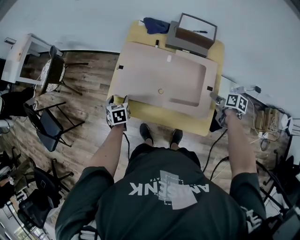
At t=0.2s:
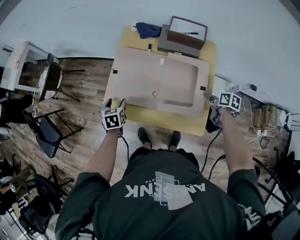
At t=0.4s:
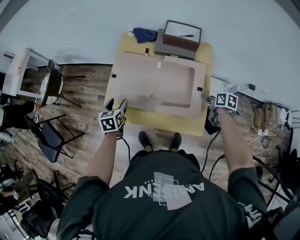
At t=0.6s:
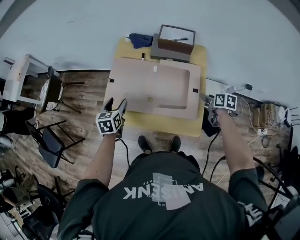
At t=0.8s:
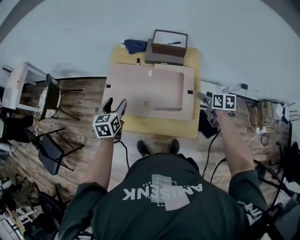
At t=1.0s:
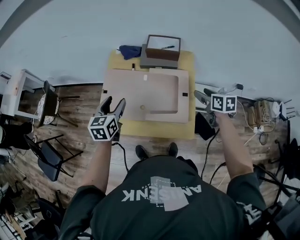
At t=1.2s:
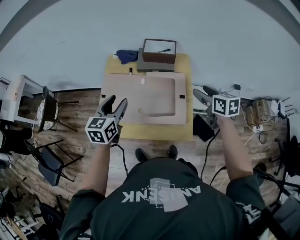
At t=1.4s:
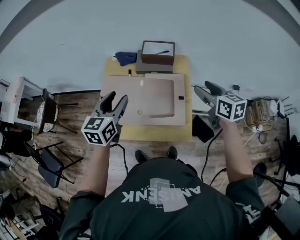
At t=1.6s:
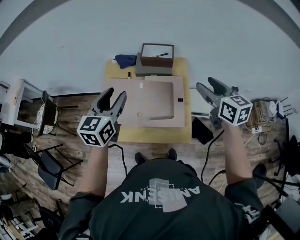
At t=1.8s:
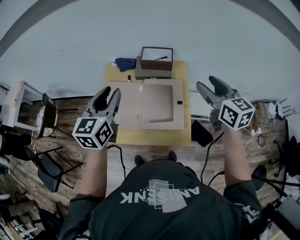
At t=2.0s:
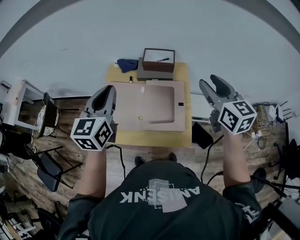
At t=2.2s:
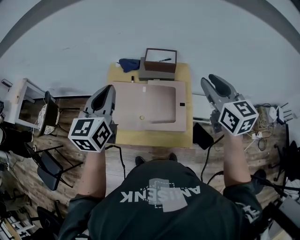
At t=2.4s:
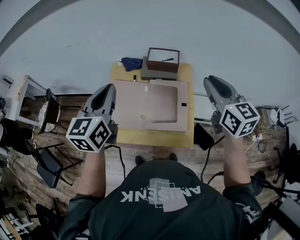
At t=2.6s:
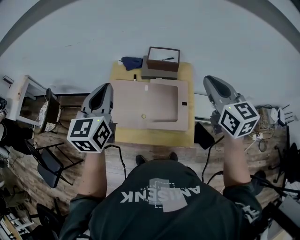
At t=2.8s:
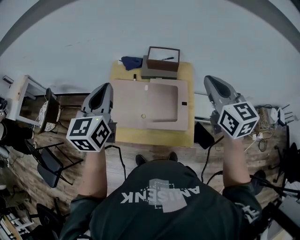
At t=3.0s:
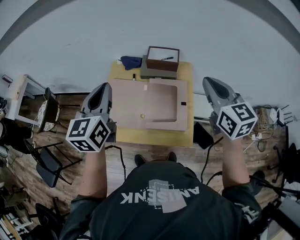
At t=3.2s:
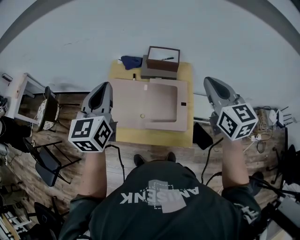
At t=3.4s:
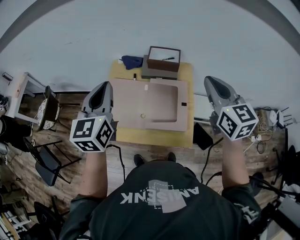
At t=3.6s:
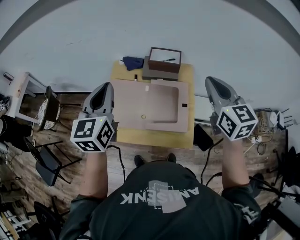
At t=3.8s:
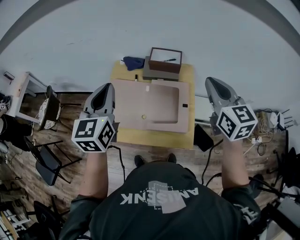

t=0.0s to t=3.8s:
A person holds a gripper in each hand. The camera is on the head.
t=0.0s to t=1.2s: The left gripper moves upward and to the right, about 30 cm, and tips its fingers upward by approximately 30 degrees; the right gripper travels upward by some 20 cm, and changes its angle by roughly 40 degrees.
t=1.2s to t=2.6s: Both grippers move upward, approximately 20 cm. The right gripper swivels approximately 30 degrees, and closes; the left gripper closes.
t=2.6s to t=3.8s: The grippers move only a little.

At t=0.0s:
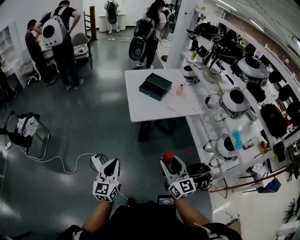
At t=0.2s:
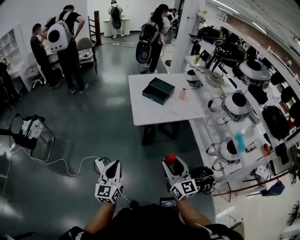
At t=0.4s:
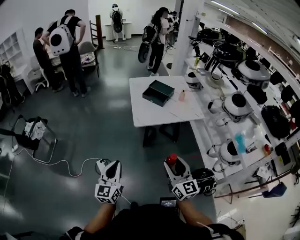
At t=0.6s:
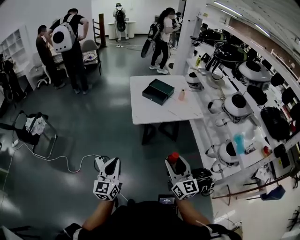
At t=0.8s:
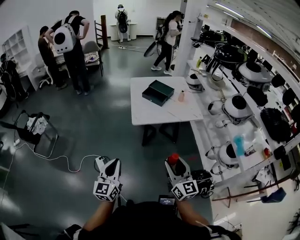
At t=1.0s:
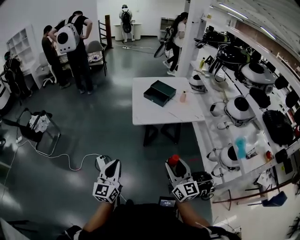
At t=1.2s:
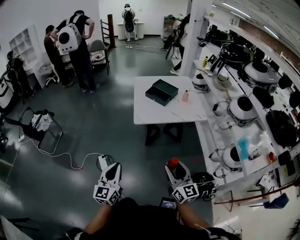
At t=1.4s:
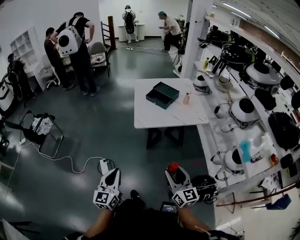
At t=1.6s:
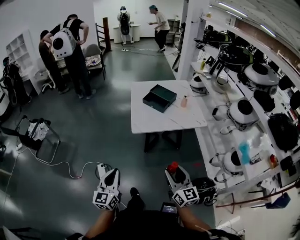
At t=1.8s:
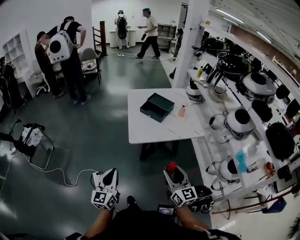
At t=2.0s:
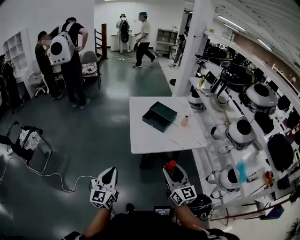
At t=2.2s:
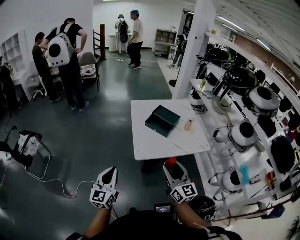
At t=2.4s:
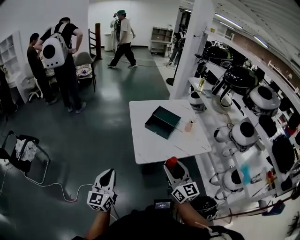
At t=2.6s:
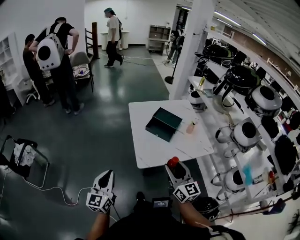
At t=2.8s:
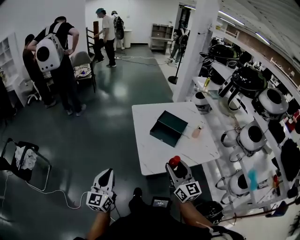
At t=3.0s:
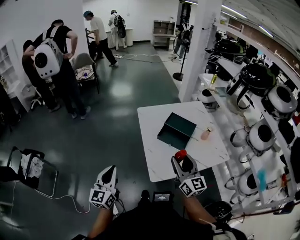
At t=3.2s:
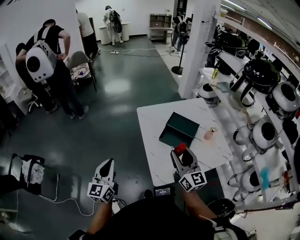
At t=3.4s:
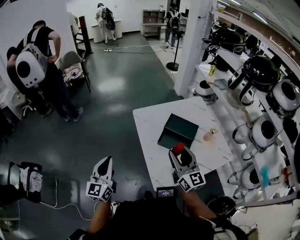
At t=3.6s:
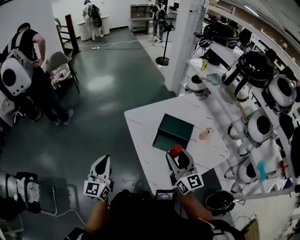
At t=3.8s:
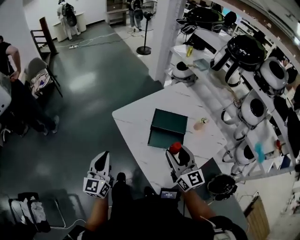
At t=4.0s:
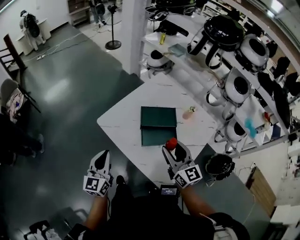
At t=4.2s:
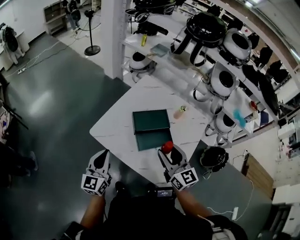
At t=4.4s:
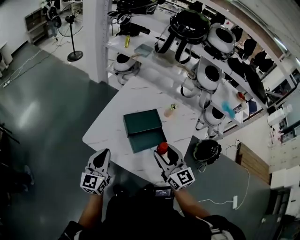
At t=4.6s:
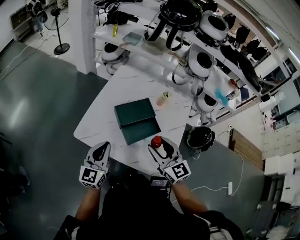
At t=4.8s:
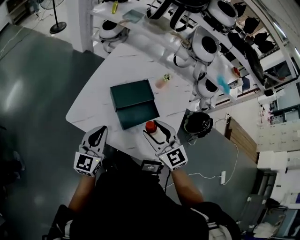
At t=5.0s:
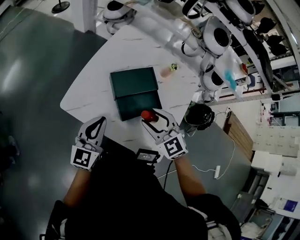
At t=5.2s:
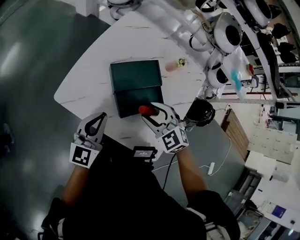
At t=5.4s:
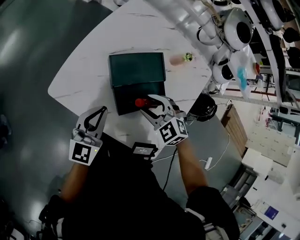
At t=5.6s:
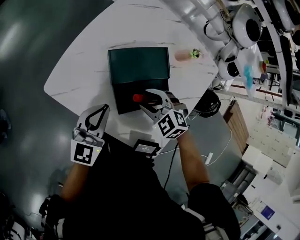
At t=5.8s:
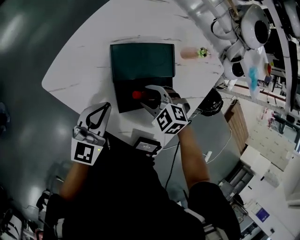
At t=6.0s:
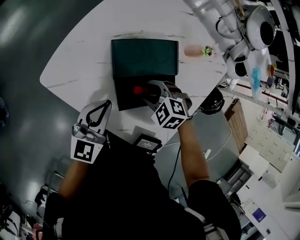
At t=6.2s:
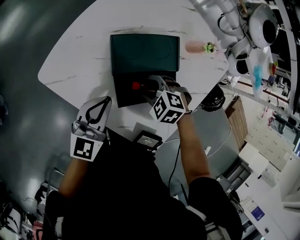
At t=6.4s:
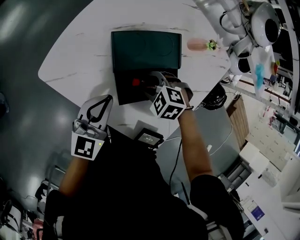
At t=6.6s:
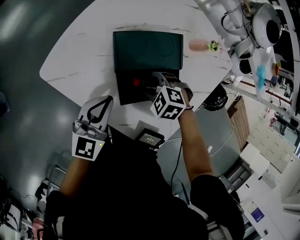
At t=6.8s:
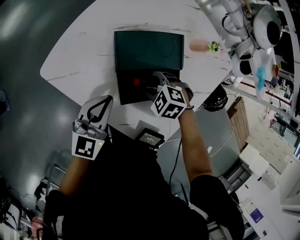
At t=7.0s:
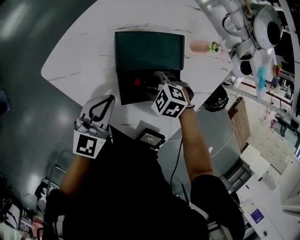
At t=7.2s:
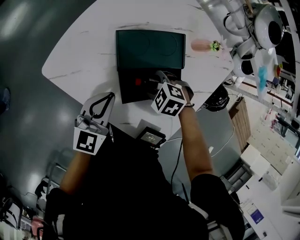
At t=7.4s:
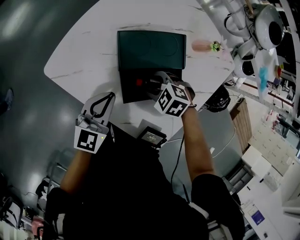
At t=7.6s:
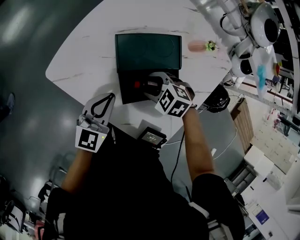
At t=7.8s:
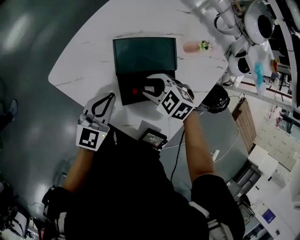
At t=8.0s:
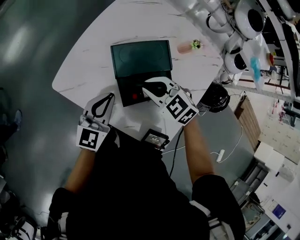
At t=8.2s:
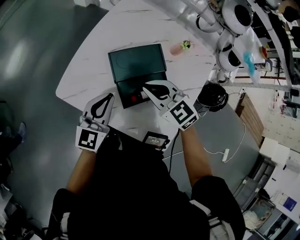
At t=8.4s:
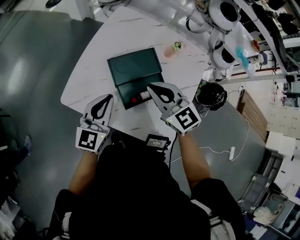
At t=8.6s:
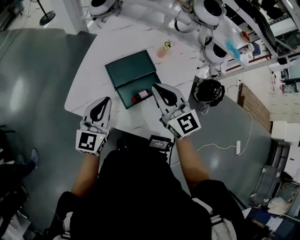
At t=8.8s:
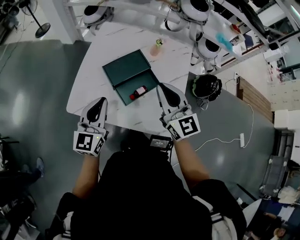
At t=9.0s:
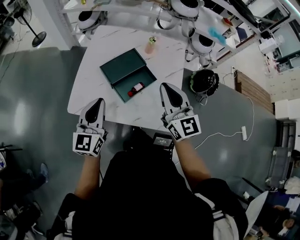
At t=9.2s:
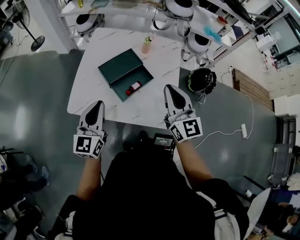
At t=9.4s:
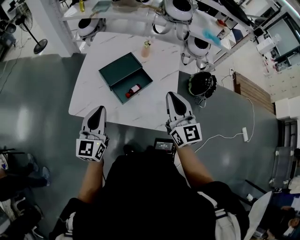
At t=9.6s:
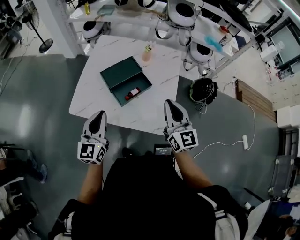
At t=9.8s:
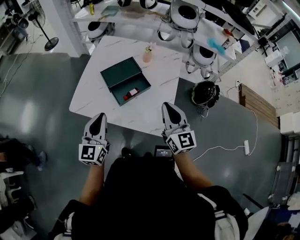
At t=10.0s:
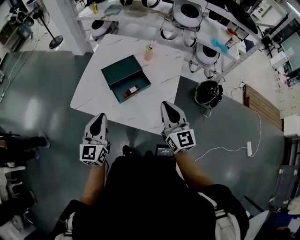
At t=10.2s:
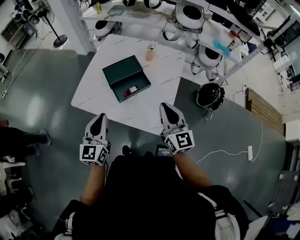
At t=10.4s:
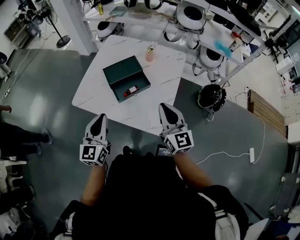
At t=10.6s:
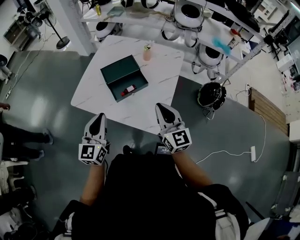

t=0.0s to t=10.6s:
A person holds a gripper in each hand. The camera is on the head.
t=0.0s to t=1.6s: The grippers both shift to the right by about 10 cm.
t=1.6s to t=3.0s: The pair of grippers is taken forward, roughly 40 cm.
t=3.0s to t=4.6s: The right gripper ends up approximately 20 cm from where it was, and swivels about 50 degrees, while the left gripper shifts by some 40 cm, and turns by roughly 60 degrees.
t=4.6s to t=6.0s: The right gripper travels downward by roughly 25 cm, and points its fingers approximately 60 degrees further downward. Meanwhile the left gripper shifts approximately 15 cm downward and to the right.
t=6.0s to t=7.6s: There are only small adjustments of the grippers.
t=7.6s to t=9.0s: The left gripper travels upward by approximately 20 cm. The right gripper heads upward, covering roughly 30 cm, angles its fingers upward, by approximately 60 degrees, and closes up.
t=9.0s to t=10.6s: The left gripper heads backward and to the right, covering about 15 cm. Meanwhile the right gripper travels to the right and backward by approximately 15 cm.

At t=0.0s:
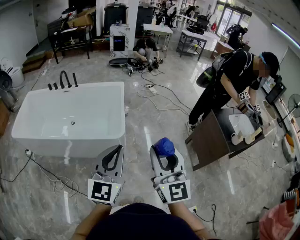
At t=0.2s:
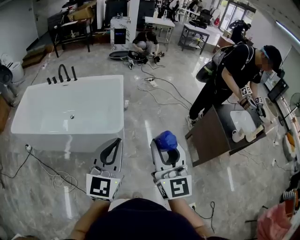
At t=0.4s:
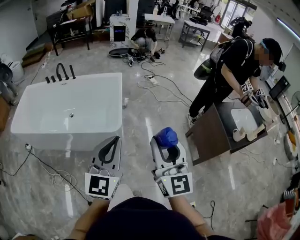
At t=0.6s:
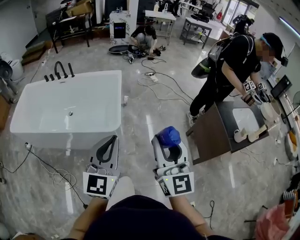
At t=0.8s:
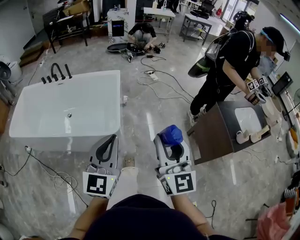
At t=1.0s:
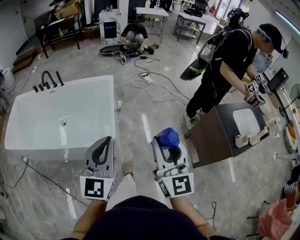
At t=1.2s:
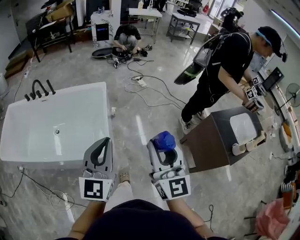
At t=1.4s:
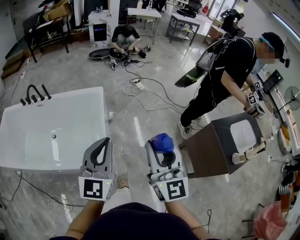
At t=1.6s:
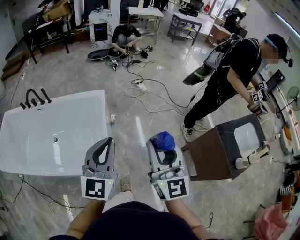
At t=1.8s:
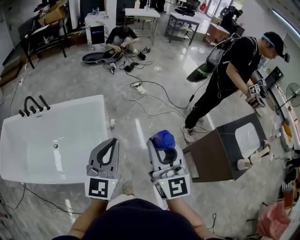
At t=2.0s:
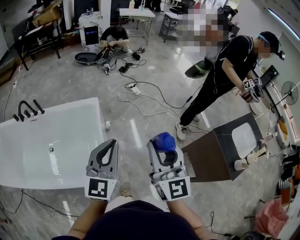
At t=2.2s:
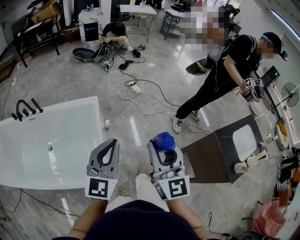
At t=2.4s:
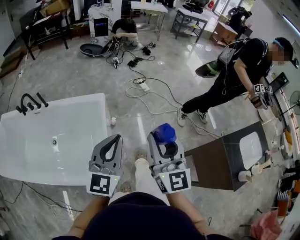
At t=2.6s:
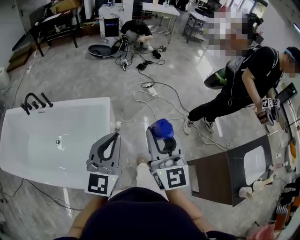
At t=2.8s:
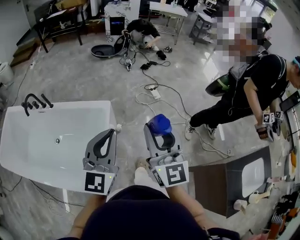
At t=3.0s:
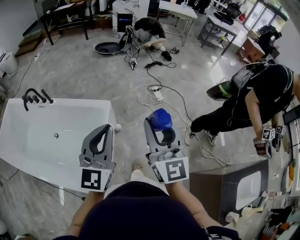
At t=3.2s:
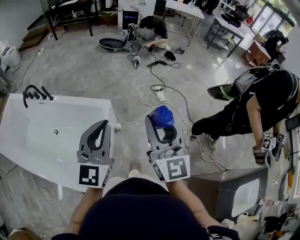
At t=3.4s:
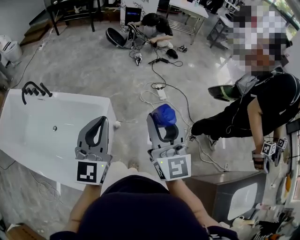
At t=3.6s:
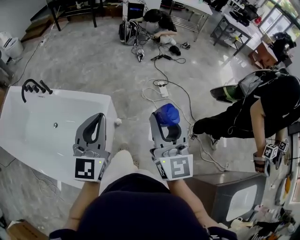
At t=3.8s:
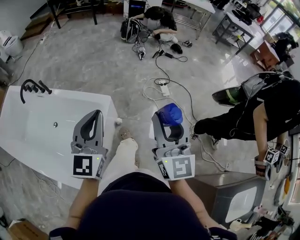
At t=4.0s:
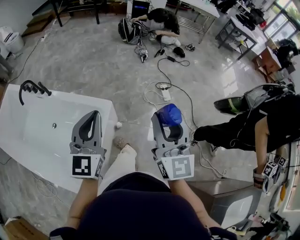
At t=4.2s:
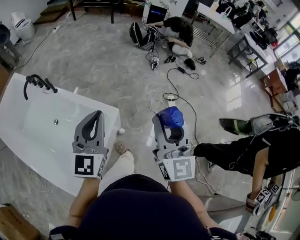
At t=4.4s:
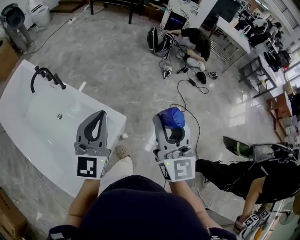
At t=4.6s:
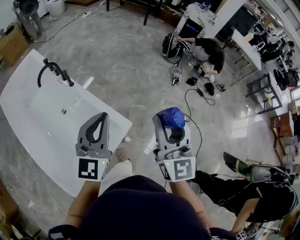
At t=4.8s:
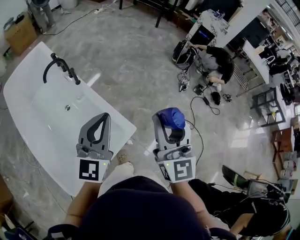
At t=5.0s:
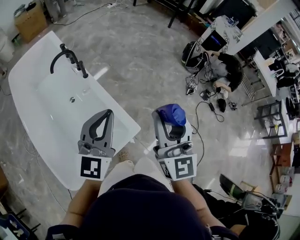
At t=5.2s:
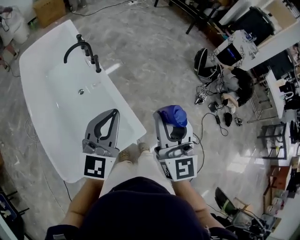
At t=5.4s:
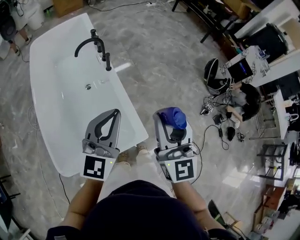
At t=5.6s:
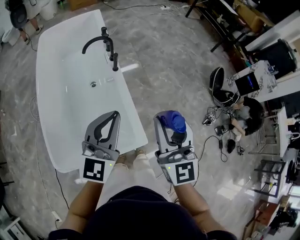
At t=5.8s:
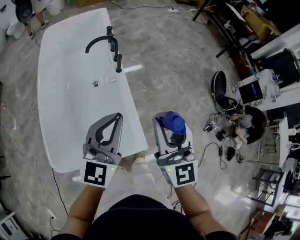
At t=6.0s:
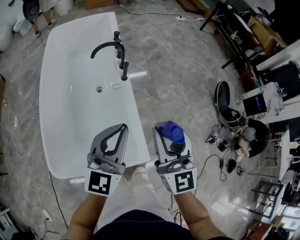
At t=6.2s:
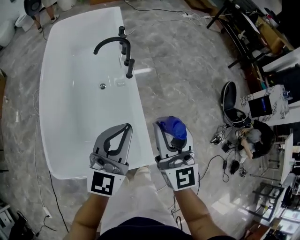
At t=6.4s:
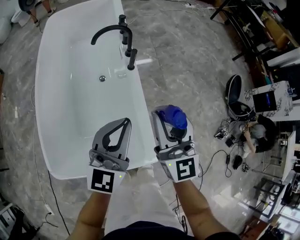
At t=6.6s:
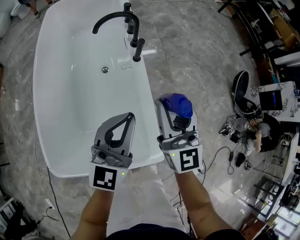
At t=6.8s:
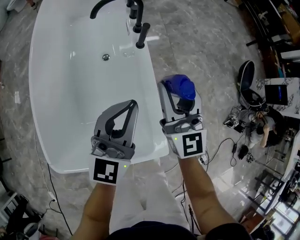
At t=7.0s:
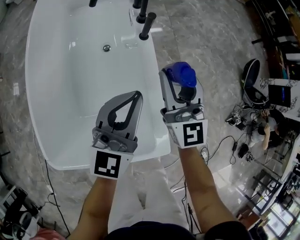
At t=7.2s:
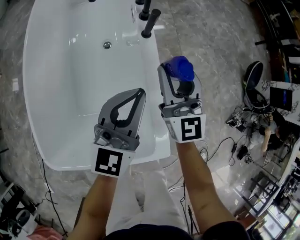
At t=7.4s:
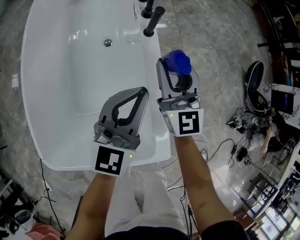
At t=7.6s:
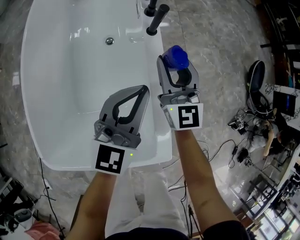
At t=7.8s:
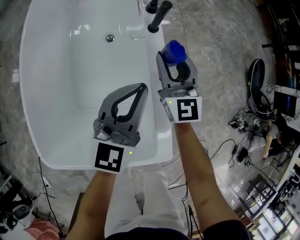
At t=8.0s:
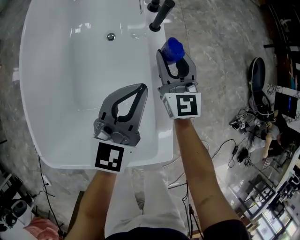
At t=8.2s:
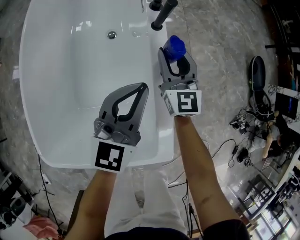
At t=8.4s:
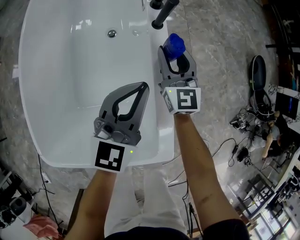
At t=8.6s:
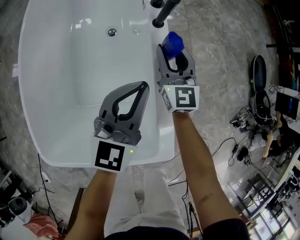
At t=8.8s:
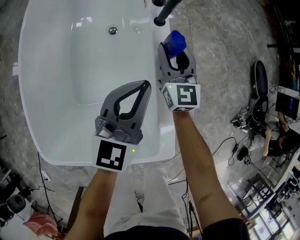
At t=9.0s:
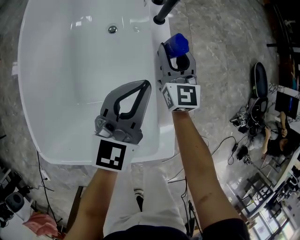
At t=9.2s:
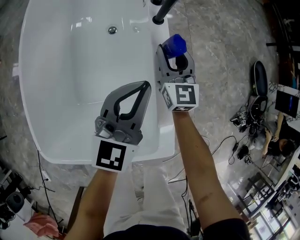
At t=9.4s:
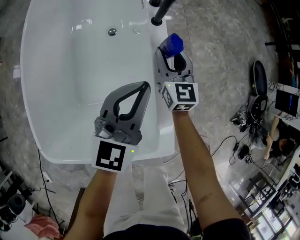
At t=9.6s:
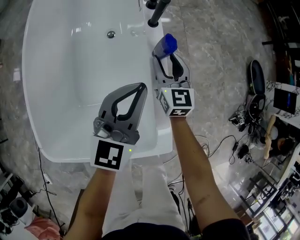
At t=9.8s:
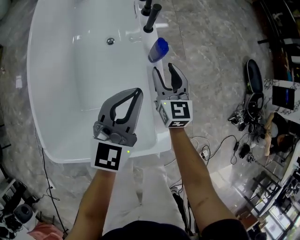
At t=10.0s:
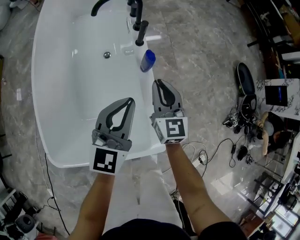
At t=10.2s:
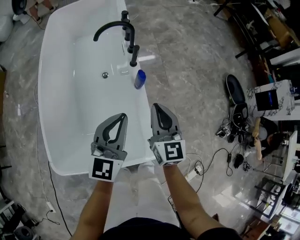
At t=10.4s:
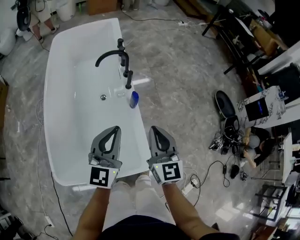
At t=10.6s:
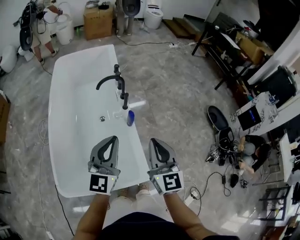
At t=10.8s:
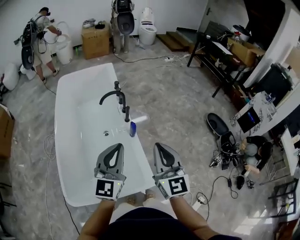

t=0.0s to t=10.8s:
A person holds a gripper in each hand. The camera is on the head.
t=0.0s to t=1.6s: Both grippers move forward, approximately 40 cm.
t=1.6s to t=3.0s: Both grippers travel together forward, approximately 30 cm.
t=3.0s to t=4.6s: The right gripper moves approximately 35 cm, and swivels roughly 30 degrees. The left gripper shifts by approximately 30 cm, and changes its angle by some 30 degrees.
t=4.6s to t=6.2s: The right gripper ends up some 30 cm from where it was, and turns by about 50 degrees; the left gripper moves roughly 20 cm, and changes its angle by roughly 30 degrees.
t=6.2s to t=7.8s: Both grippers travel together downward and forward, roughly 30 cm.
t=7.8s to t=9.2s: The right gripper heads downward, covering roughly 5 cm.
t=9.2s to t=10.8s: The grippers both shift upward and backward by some 40 cm. The right gripper closes its fingers.
